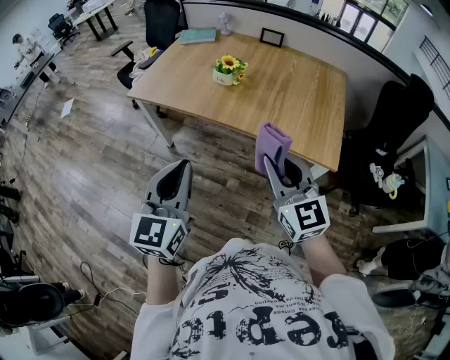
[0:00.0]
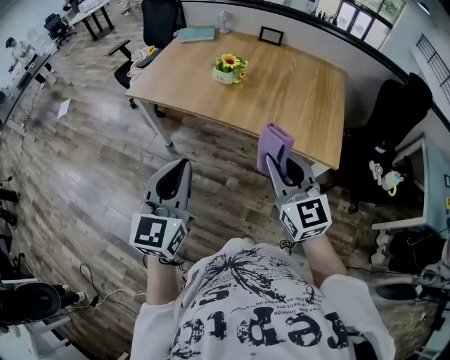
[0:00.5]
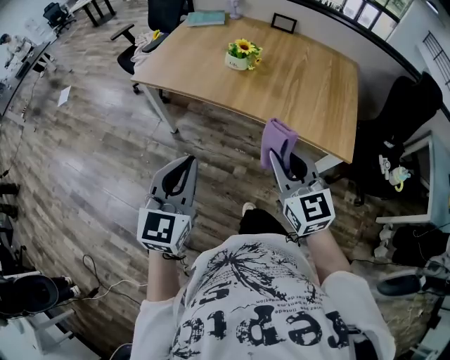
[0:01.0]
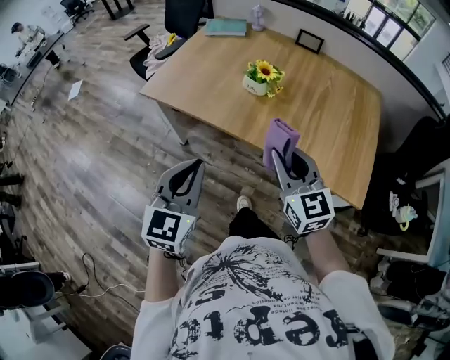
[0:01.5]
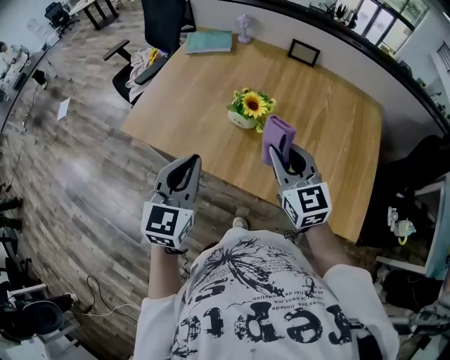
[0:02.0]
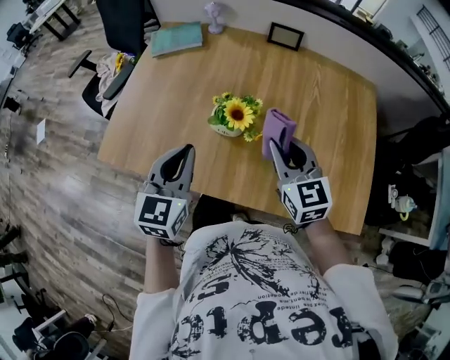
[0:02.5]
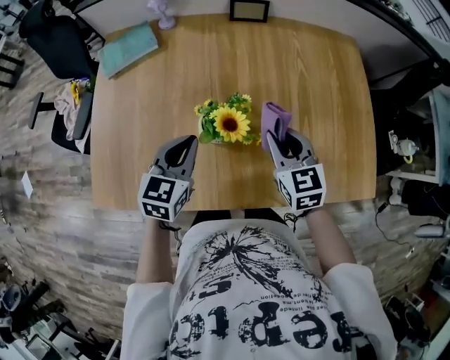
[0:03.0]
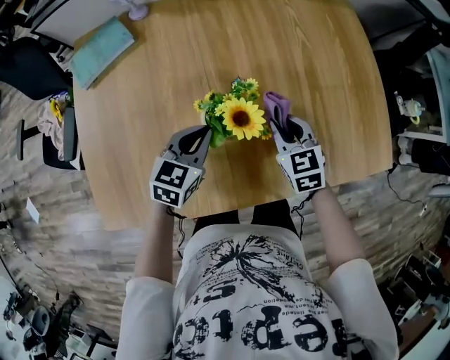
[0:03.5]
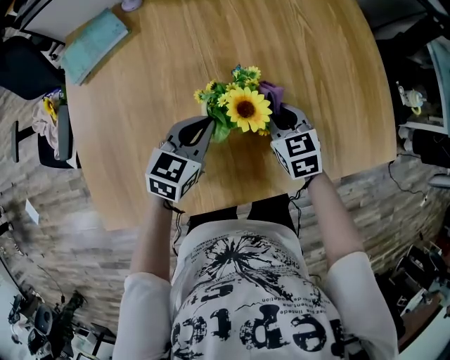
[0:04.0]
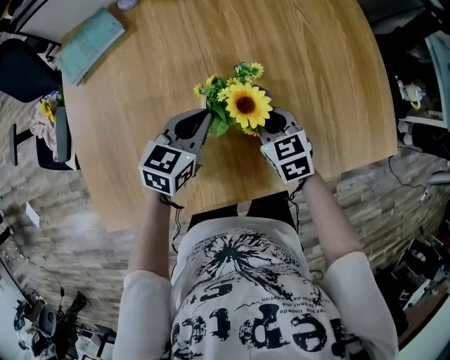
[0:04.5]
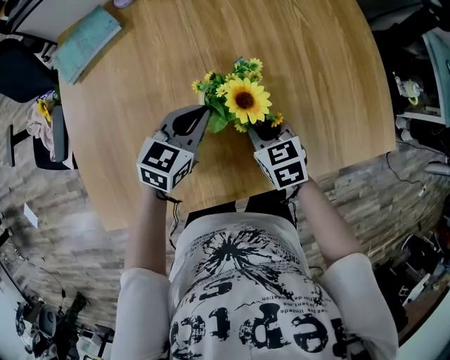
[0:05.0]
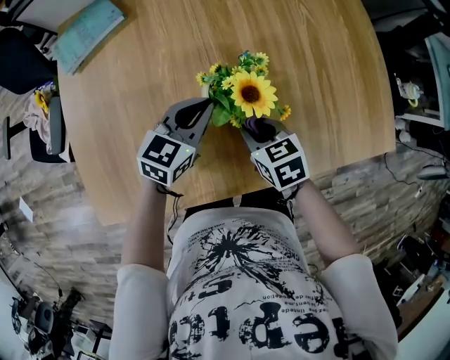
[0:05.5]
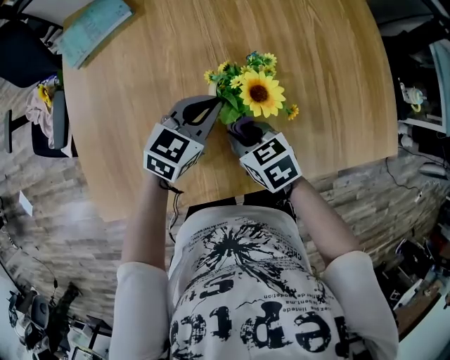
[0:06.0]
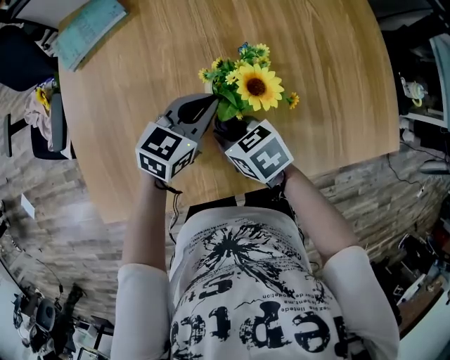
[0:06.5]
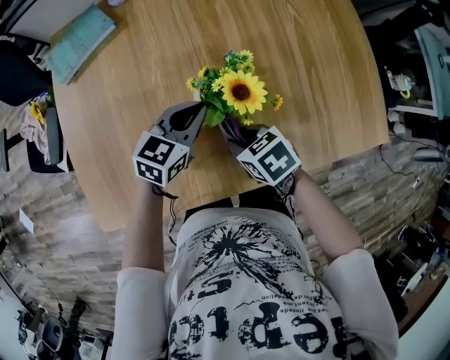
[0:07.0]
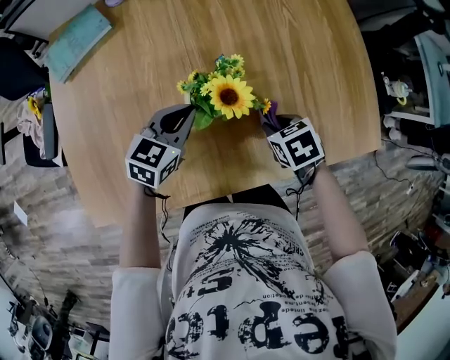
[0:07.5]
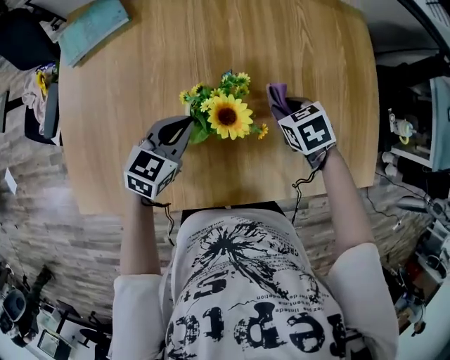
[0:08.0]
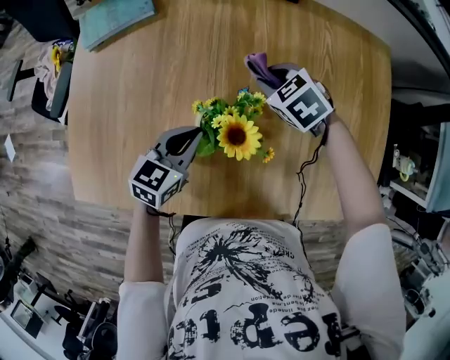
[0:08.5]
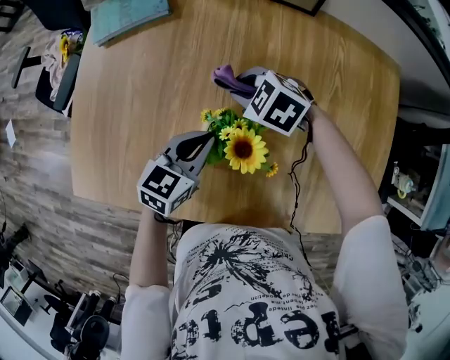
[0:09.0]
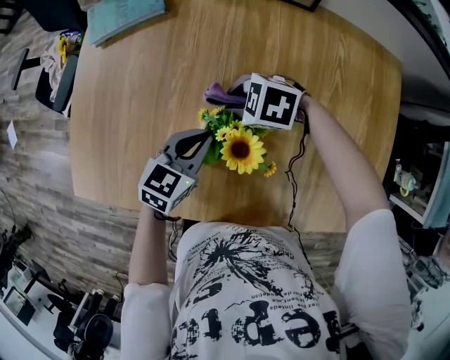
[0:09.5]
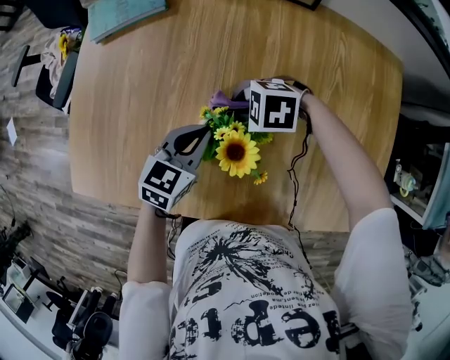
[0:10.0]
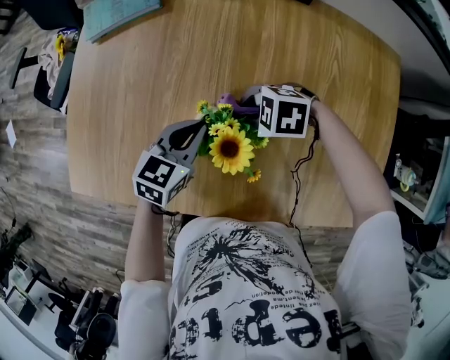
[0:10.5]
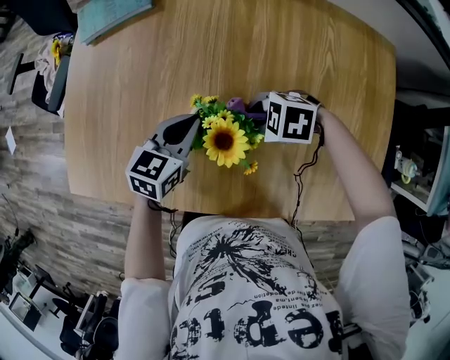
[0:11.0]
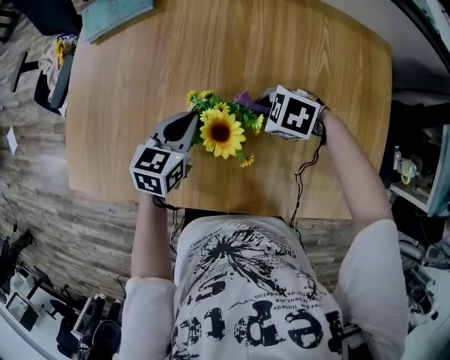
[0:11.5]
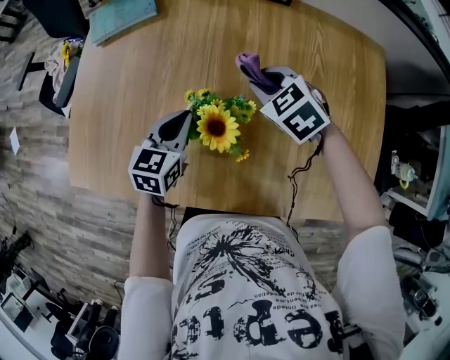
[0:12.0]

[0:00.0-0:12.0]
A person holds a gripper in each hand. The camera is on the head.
0:00.0 to 0:02.0: The grippers both shift forward by some 35 cm.
0:02.0 to 0:04.0: The right gripper shifts roughly 25 cm downward, and changes its angle by some 50 degrees. The left gripper moves roughly 35 cm, and changes its angle by roughly 50 degrees.
0:04.0 to 0:06.0: The right gripper goes approximately 15 cm to the left and backward, and rotates about 20 degrees.
0:06.0 to 0:08.0: The right gripper heads to the right and forward, covering approximately 20 cm, and changes its angle by approximately 20 degrees.
0:08.0 to 0:10.0: The right gripper changes place by roughly 15 cm, and rolls counterclockwise, seen from behind, by some 60 degrees.
0:10.0 to 0:12.0: The right gripper moves roughly 15 cm, and rotates about 50 degrees.

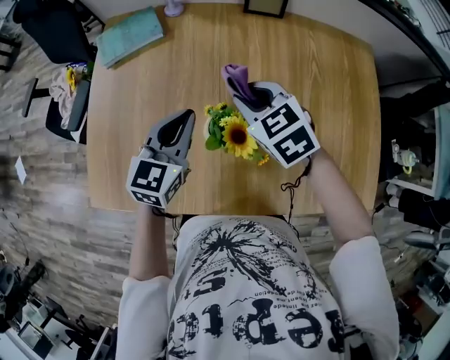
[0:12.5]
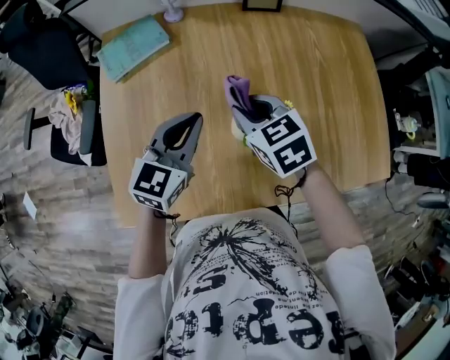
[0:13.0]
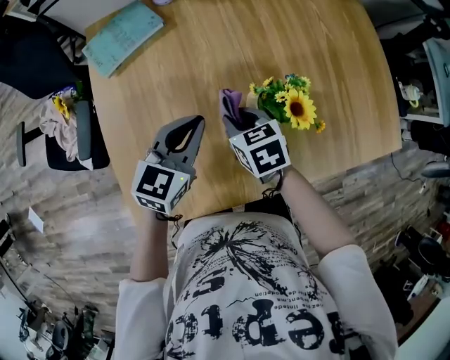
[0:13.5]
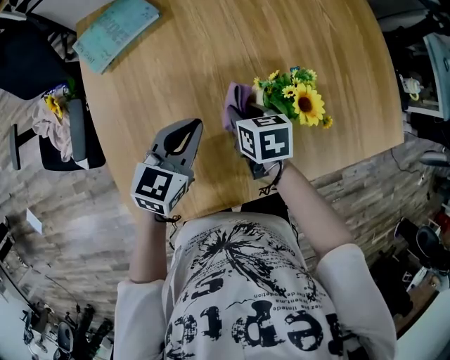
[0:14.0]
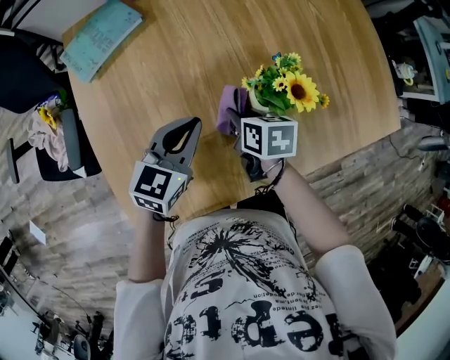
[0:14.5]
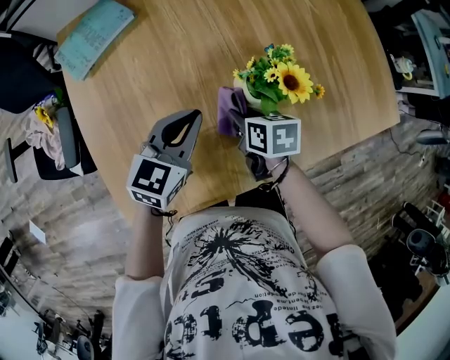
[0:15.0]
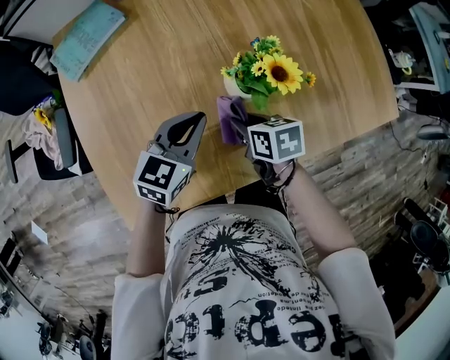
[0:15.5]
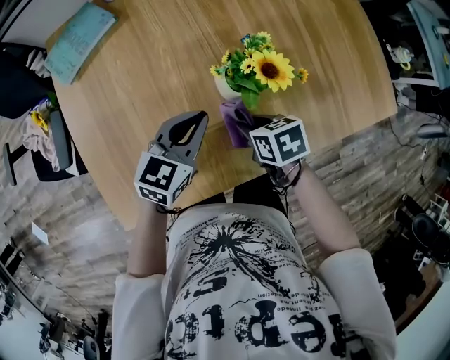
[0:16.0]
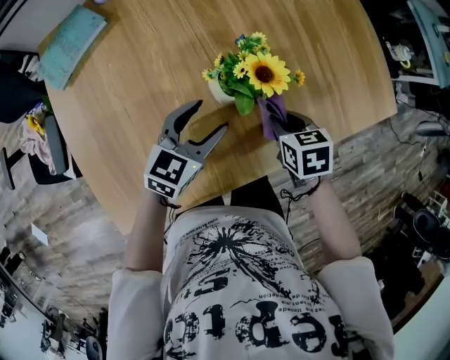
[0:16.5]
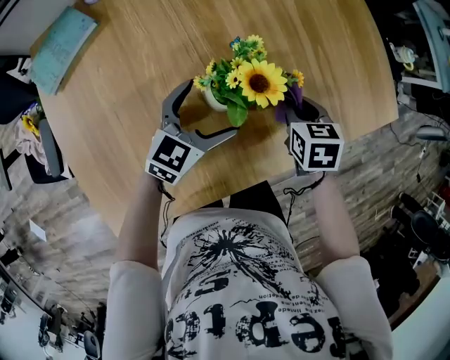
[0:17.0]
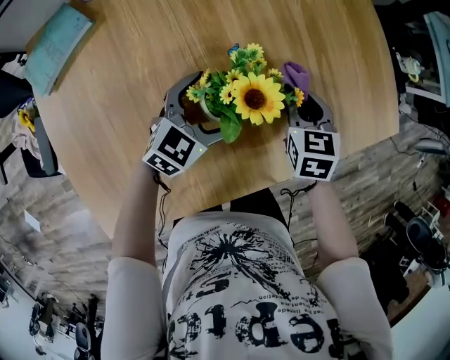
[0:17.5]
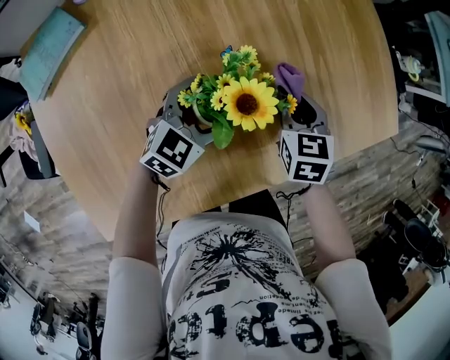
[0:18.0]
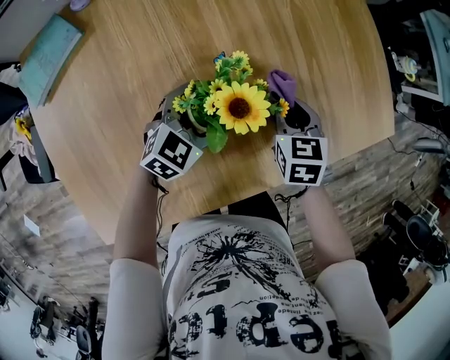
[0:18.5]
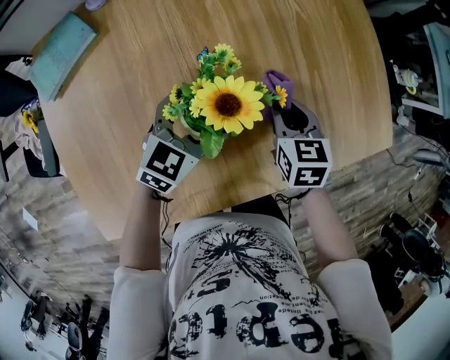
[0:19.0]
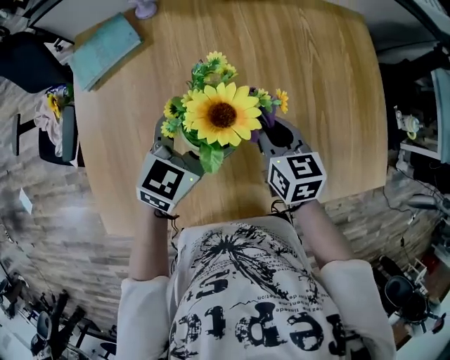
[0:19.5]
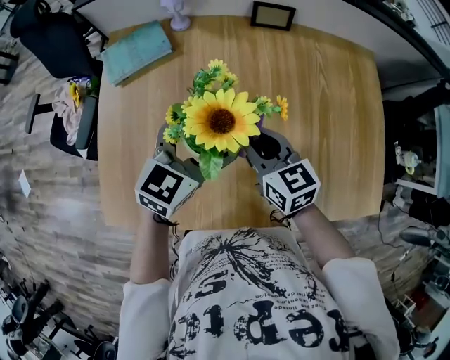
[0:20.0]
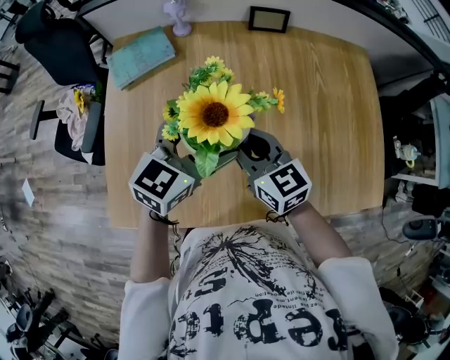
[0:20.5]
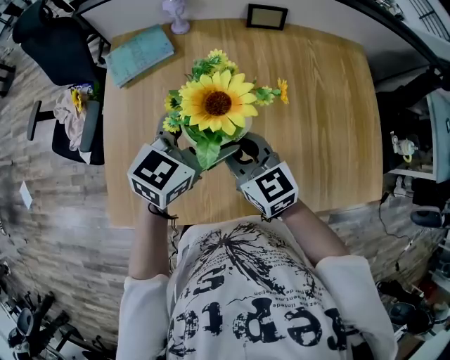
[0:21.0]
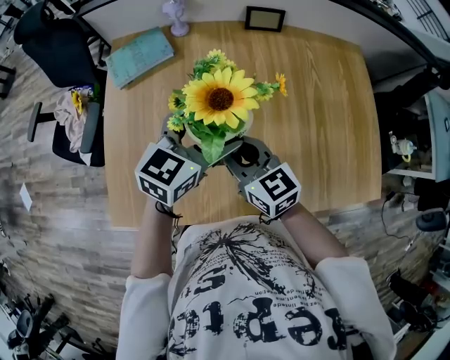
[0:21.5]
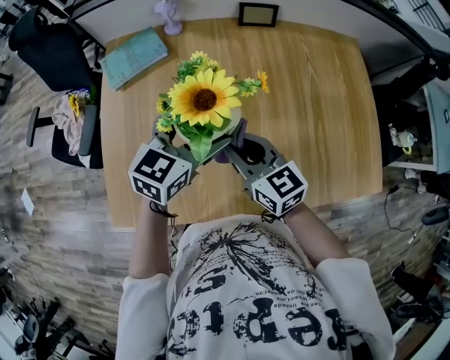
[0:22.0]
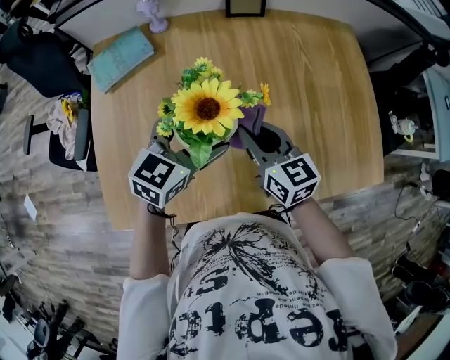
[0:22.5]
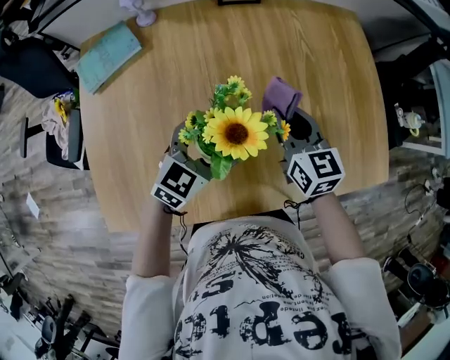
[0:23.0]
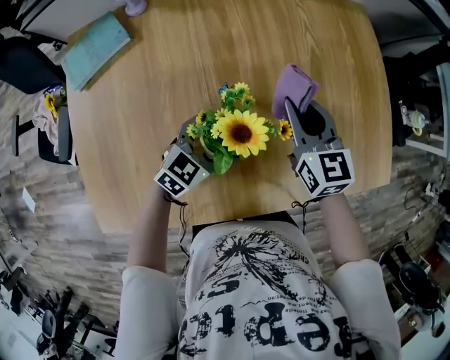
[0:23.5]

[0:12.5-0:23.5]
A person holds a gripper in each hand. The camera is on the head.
0:12.5 to 0:14.5: The right gripper moves downward, some 15 cm, and rotates around the line of its fingers by approximately 60 degrees, clockwise from behind. Meanwhile the left gripper shifts by some 15 cm, and swivels some 30 degrees.
0:14.5 to 0:16.0: The left gripper heads to the right, covering roughly 10 cm, while the right gripper goes about 10 cm to the right and backward.
0:16.0 to 0:18.0: The right gripper shifts by about 20 cm, and changes its angle by some 40 degrees. Meanwhile the left gripper moves about 15 cm, swivels approximately 20 degrees, and opens up.
0:18.0 to 0:20.0: The left gripper is displaced upward by roughly 20 cm, and turns by approximately 30 degrees. The right gripper ends up approximately 25 cm from where it was, and rotates about 50 degrees.
0:20.0 to 0:21.5: The right gripper shifts some 10 cm to the left and backward.
0:21.5 to 0:23.5: The right gripper changes place by some 25 cm, and turns by some 30 degrees; the left gripper shifts approximately 20 cm downward, and rotates some 30 degrees.

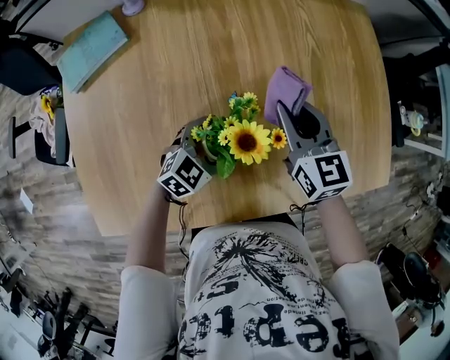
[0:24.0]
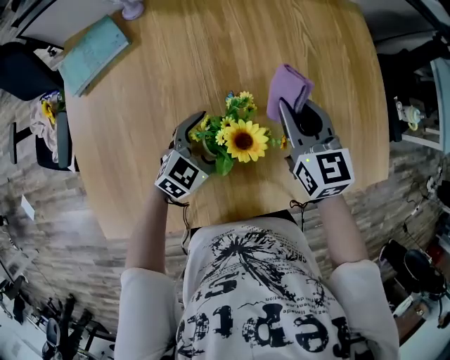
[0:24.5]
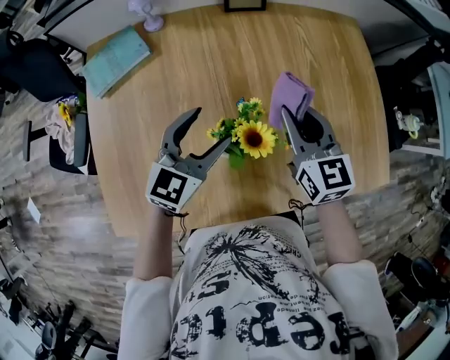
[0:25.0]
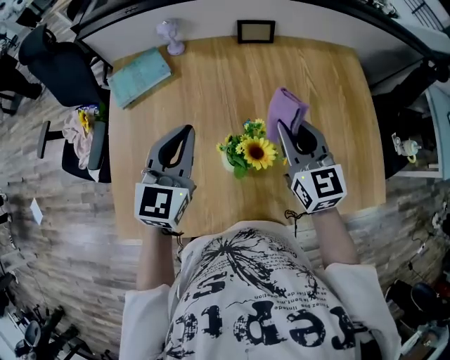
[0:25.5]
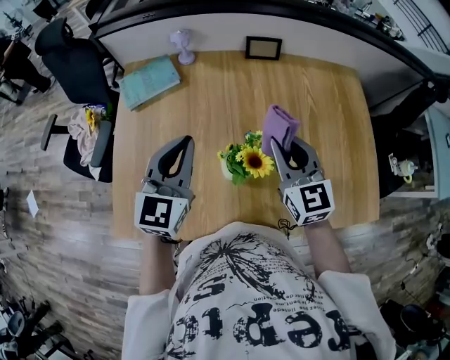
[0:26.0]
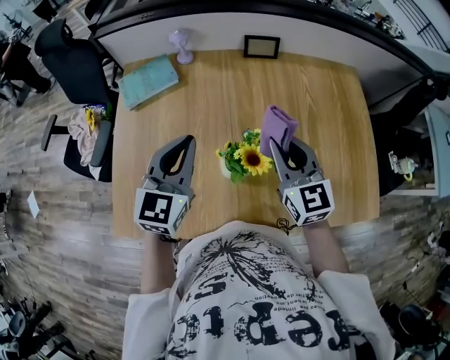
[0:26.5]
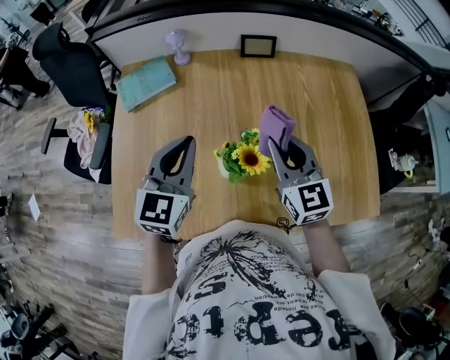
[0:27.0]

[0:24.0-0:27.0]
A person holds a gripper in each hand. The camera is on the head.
0:24.0 to 0:25.5: The left gripper moves upward and to the left, approximately 30 cm, swivels approximately 50 degrees, and closes up. The right gripper shifts approximately 10 cm upward.
0:25.5 to 0:27.0: There are only small adjustments of the grippers.
